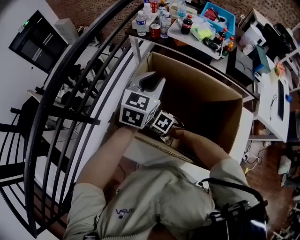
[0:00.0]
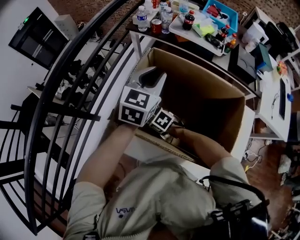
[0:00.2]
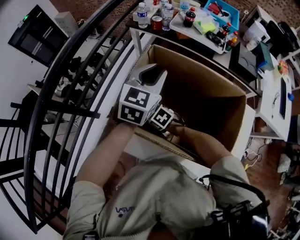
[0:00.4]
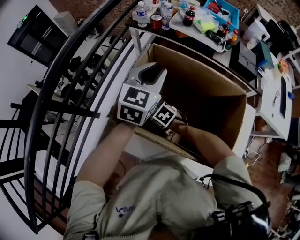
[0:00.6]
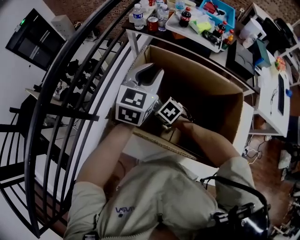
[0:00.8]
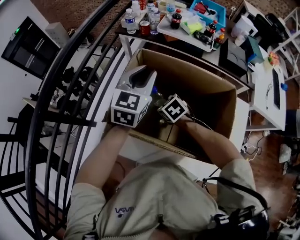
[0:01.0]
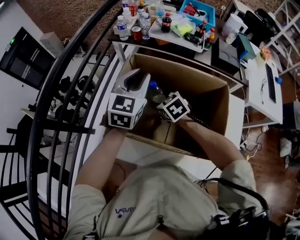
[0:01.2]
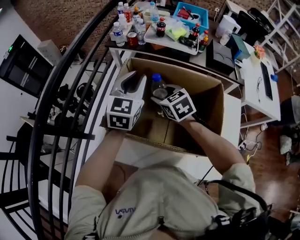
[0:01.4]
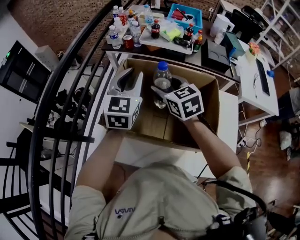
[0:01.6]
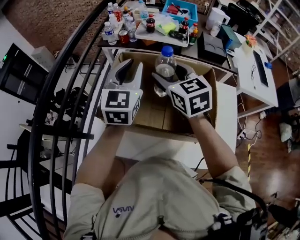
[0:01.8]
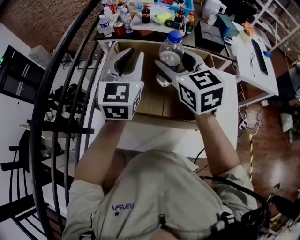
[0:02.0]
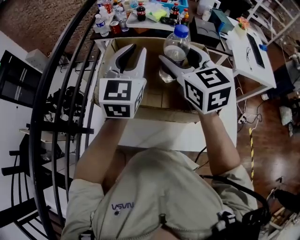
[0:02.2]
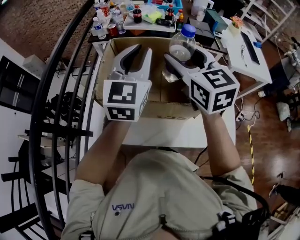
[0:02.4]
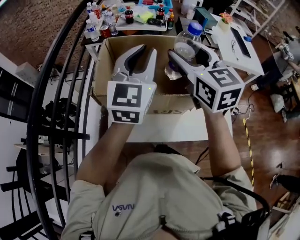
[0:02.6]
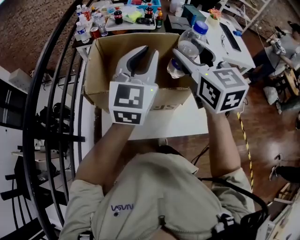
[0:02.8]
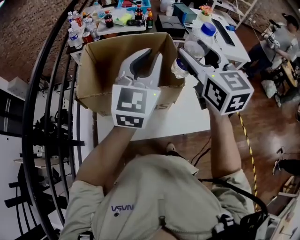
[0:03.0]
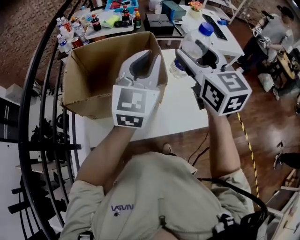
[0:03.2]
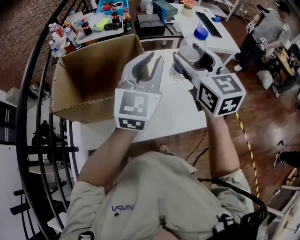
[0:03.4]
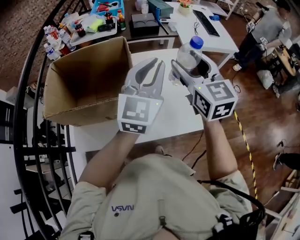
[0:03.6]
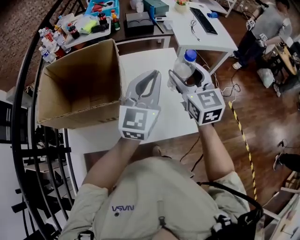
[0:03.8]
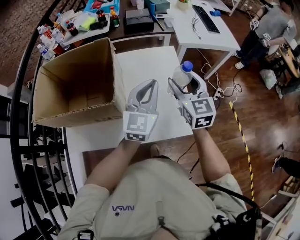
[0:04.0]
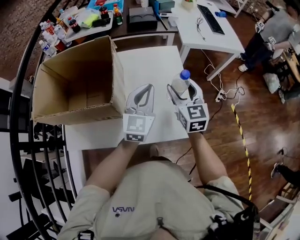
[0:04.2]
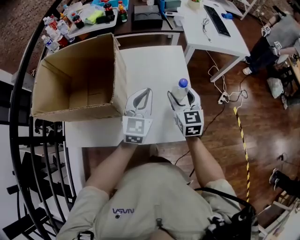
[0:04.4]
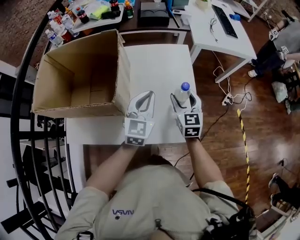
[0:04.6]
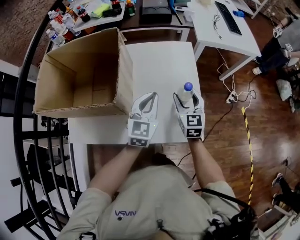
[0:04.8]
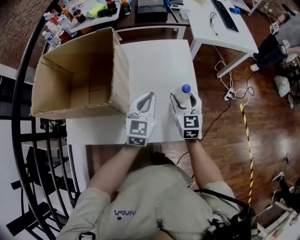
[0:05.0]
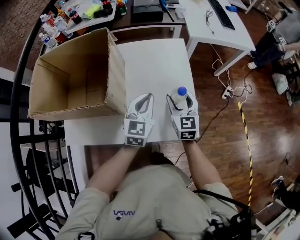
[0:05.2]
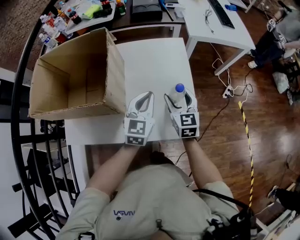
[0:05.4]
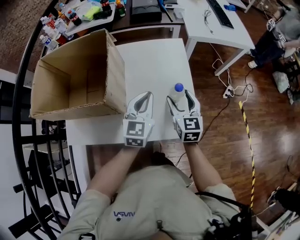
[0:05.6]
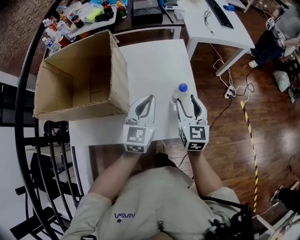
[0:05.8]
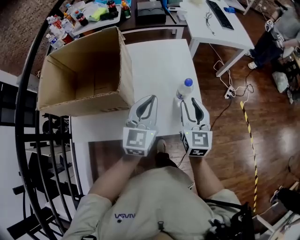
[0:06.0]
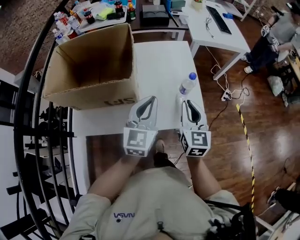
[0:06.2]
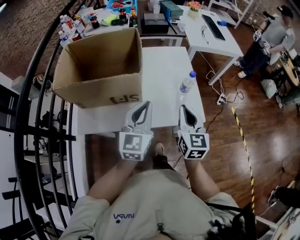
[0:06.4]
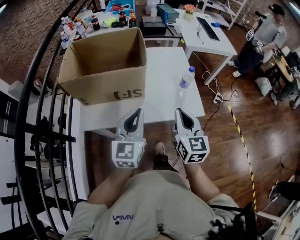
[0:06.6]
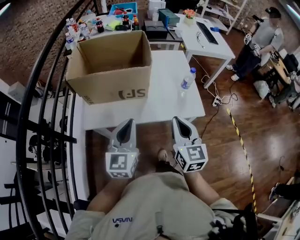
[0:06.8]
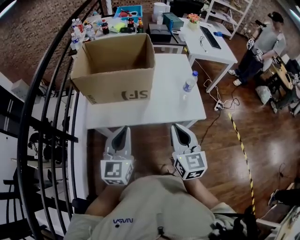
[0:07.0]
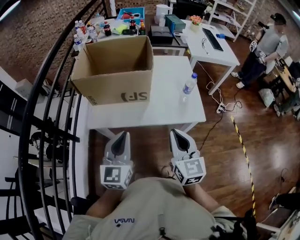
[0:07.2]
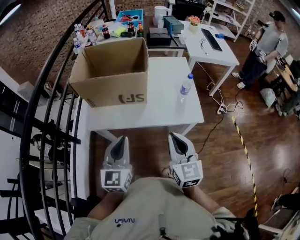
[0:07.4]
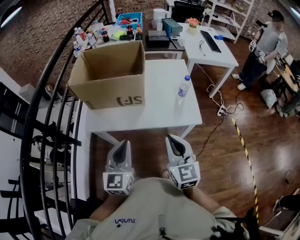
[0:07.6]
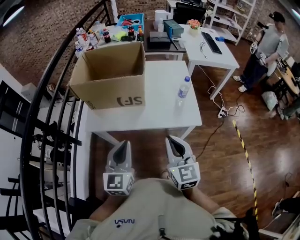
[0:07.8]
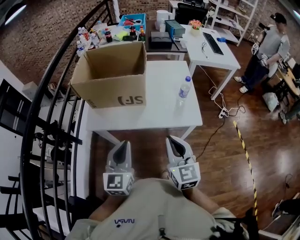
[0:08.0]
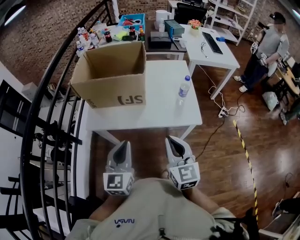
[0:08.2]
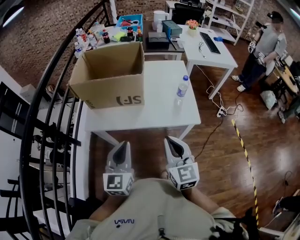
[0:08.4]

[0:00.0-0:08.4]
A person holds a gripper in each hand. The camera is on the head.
0:00.0 to 0:01.4: The right gripper moves upward, about 20 cm, and rotates roughly 40 degrees.
0:01.4 to 0:02.8: The right gripper heads upward, backward and to the right, covering about 35 cm, and angles its fingers upward, by about 30 degrees; the left gripper shifts roughly 25 cm backward, upward and to the right, and changes its angle by roughly 20 degrees.
0:02.8 to 0:04.2: Both grippers travel together to the right and downward, about 35 cm.
0:04.2 to 0:05.6: Both grippers travel together downward, approximately 10 cm.
0:05.6 to 0:07.0: The left gripper is displaced backward and to the left by approximately 40 cm. Meanwhile the right gripper is displaced backward, to the left and upward by some 40 cm, and closes up.
0:07.0 to 0:08.4: Both grippers move backward, some 5 cm.

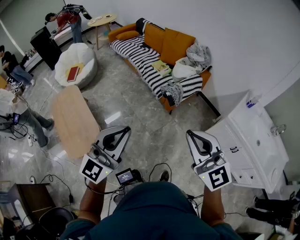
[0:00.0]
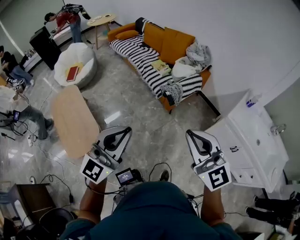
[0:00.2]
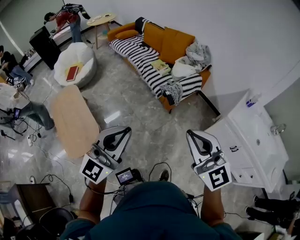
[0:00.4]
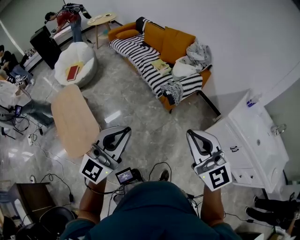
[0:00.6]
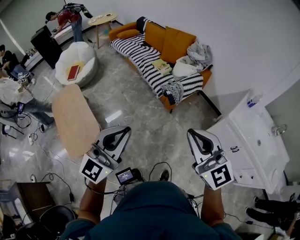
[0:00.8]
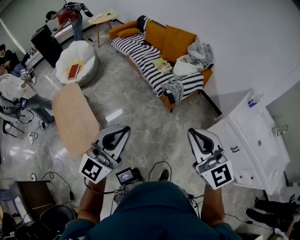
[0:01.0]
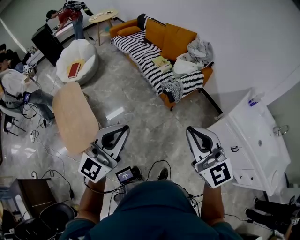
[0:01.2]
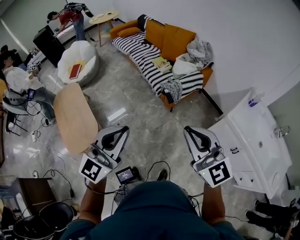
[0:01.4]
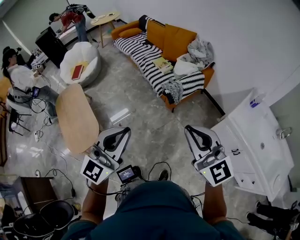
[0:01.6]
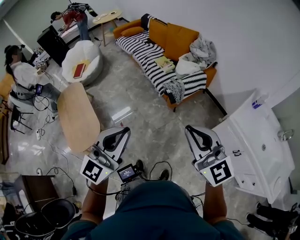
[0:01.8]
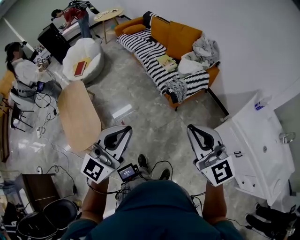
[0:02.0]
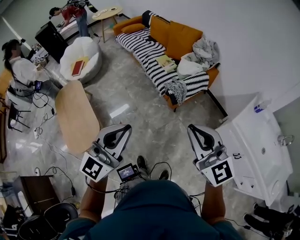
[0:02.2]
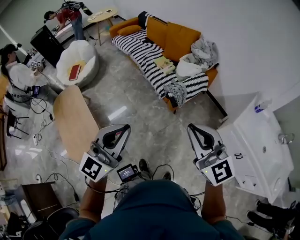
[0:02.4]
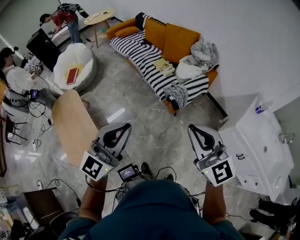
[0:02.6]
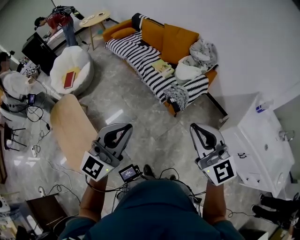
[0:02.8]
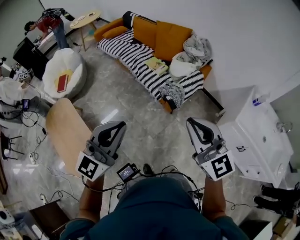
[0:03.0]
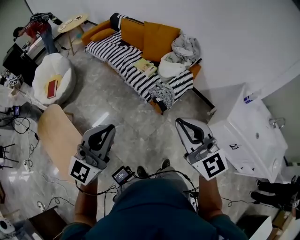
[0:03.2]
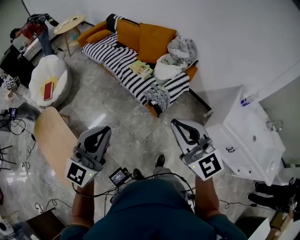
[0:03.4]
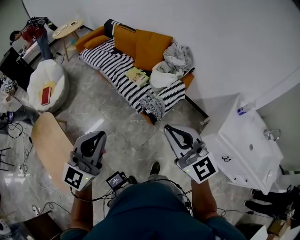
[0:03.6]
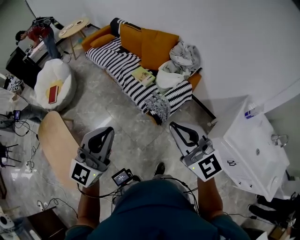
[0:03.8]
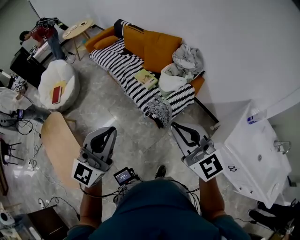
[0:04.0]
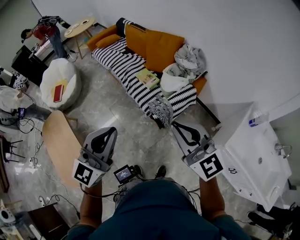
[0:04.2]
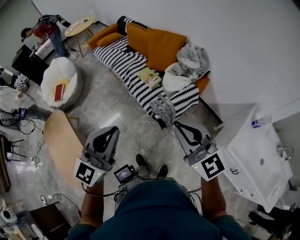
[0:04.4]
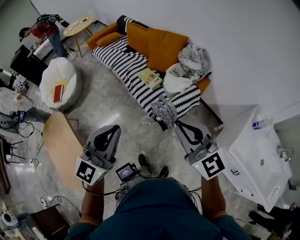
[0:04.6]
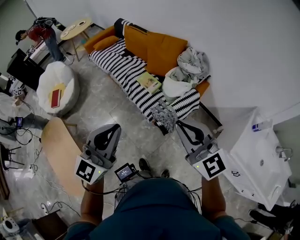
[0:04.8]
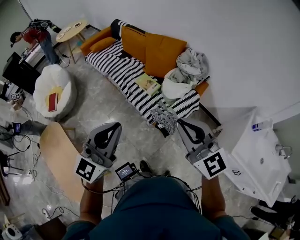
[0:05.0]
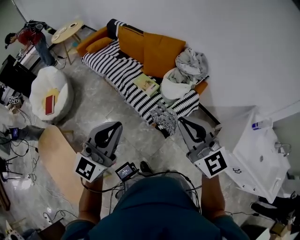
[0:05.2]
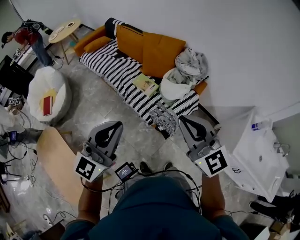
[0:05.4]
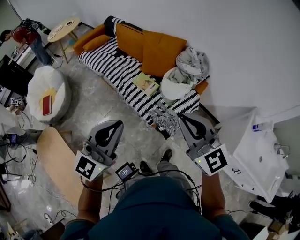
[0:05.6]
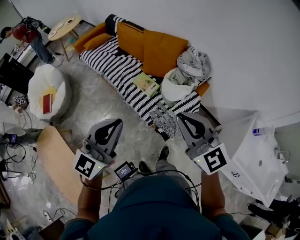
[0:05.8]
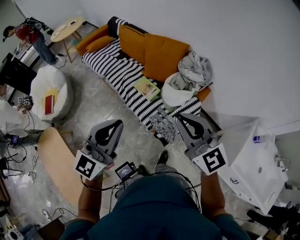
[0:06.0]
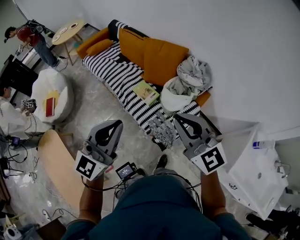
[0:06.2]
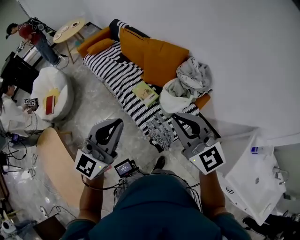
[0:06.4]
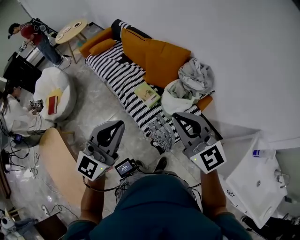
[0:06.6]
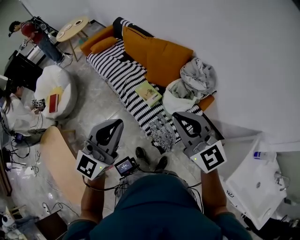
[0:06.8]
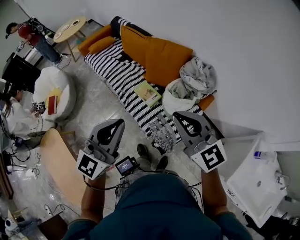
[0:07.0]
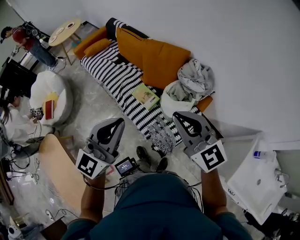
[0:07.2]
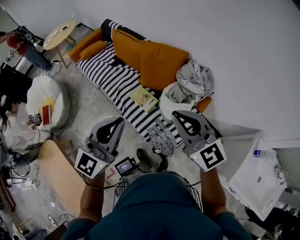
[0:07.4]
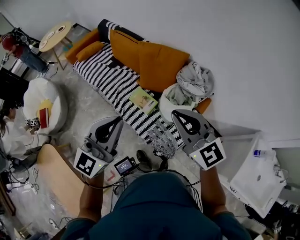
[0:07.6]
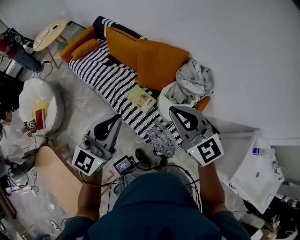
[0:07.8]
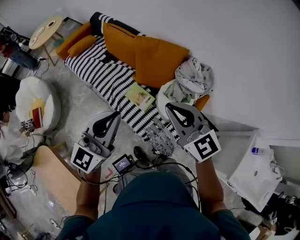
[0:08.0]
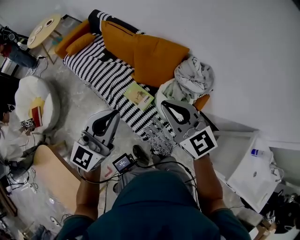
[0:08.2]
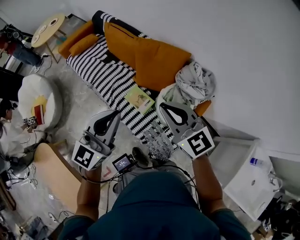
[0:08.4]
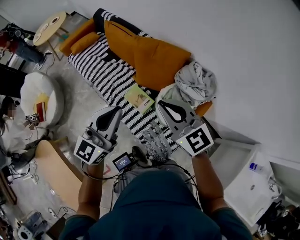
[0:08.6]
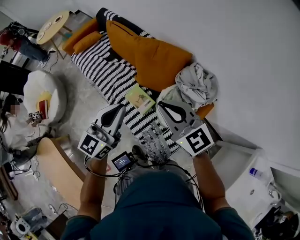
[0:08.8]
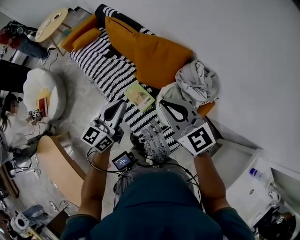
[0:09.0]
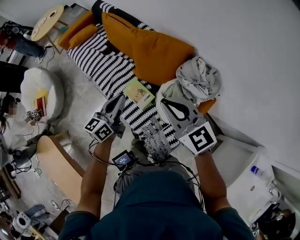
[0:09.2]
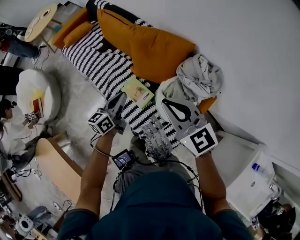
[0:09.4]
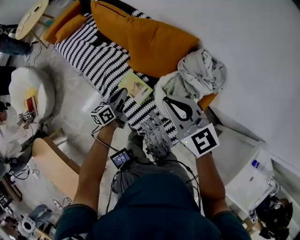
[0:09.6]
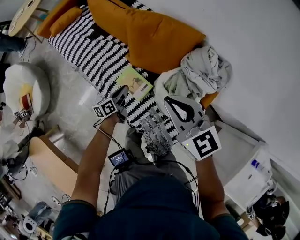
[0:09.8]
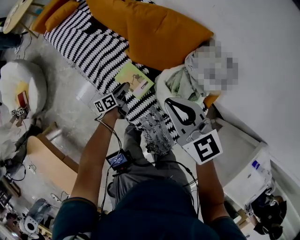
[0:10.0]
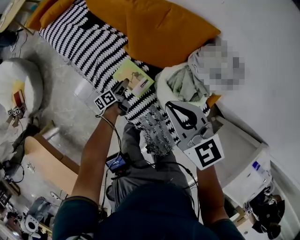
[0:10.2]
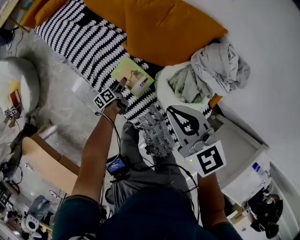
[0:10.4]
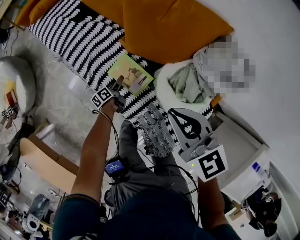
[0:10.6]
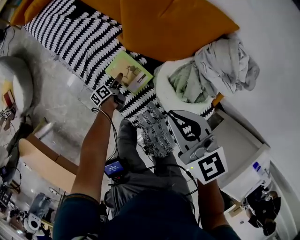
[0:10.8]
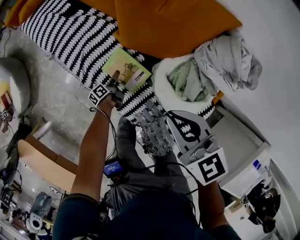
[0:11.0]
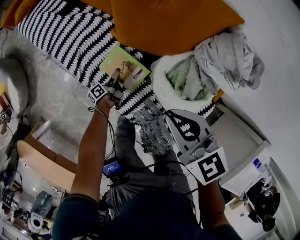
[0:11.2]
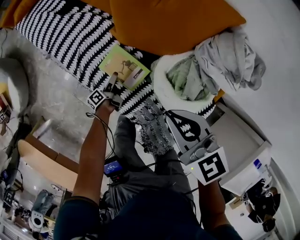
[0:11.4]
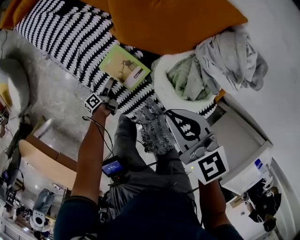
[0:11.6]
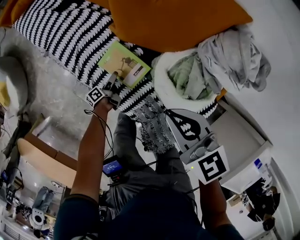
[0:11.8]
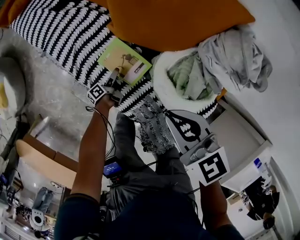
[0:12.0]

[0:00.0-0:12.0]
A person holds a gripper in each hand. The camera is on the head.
0:00.0 to 0:01.6: Both grippers travel together to the right, about 10 cm.
0:01.6 to 0:03.0: The two grippers go some 20 cm forward and to the left.
0:03.0 to 0:04.4: Both grippers travel together forward and to the right, roughly 20 cm.
0:04.4 to 0:06.0: The grippers both shift forward by roughly 20 cm.
0:06.0 to 0:07.6: Both grippers travel together forward, roughly 20 cm.
0:07.6 to 0:09.0: Both grippers move forward and downward, approximately 20 cm. The left gripper changes its angle by about 30 degrees.
0:09.0 to 0:10.4: The right gripper goes some 20 cm downward and forward, and swivels some 20 degrees. The left gripper moves downward, about 60 cm, twists roughly 60 degrees counterclockwise, seen from behind, and opens.
0:10.4 to 0:12.0: The two grippers go approximately 10 cm downward.

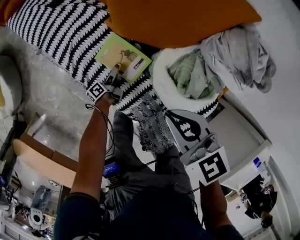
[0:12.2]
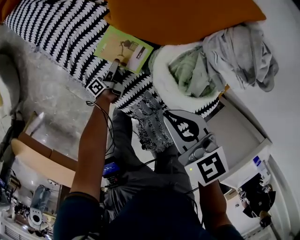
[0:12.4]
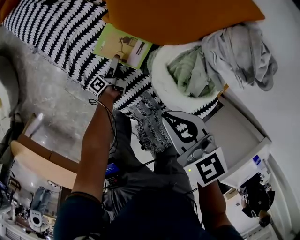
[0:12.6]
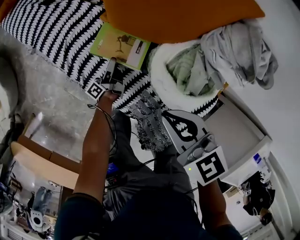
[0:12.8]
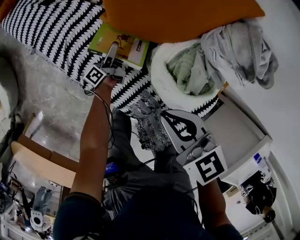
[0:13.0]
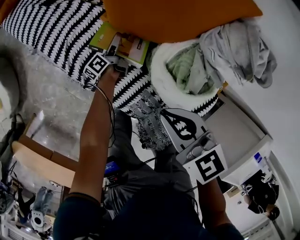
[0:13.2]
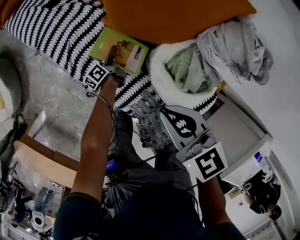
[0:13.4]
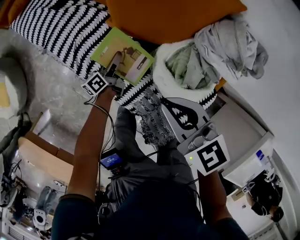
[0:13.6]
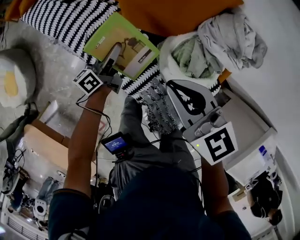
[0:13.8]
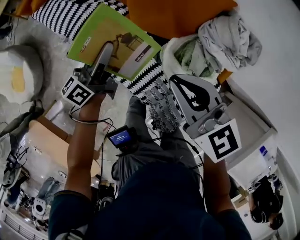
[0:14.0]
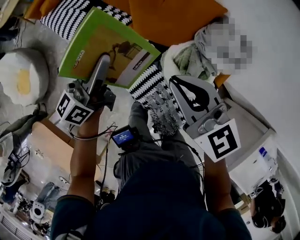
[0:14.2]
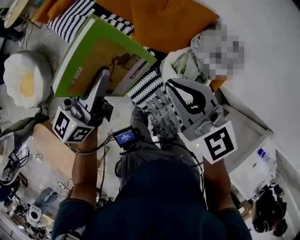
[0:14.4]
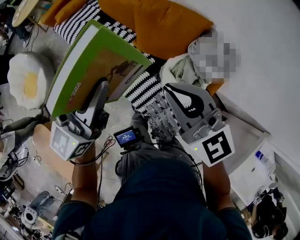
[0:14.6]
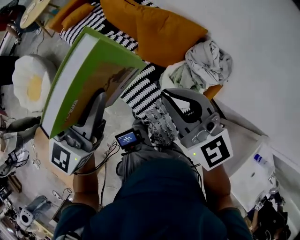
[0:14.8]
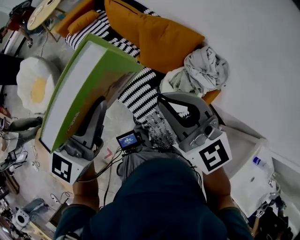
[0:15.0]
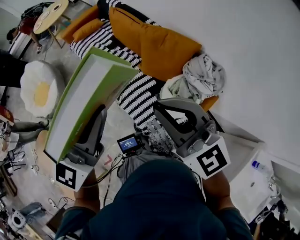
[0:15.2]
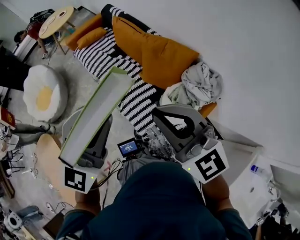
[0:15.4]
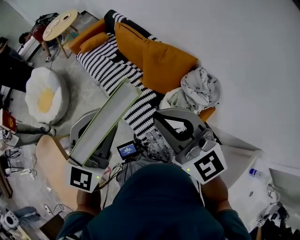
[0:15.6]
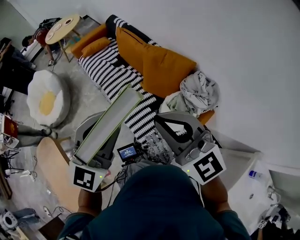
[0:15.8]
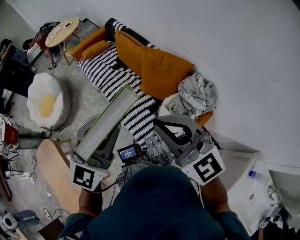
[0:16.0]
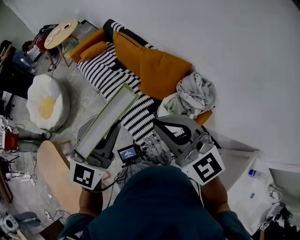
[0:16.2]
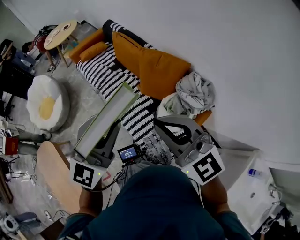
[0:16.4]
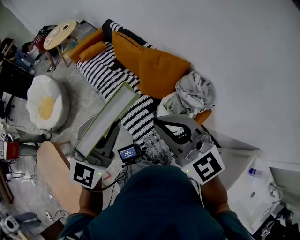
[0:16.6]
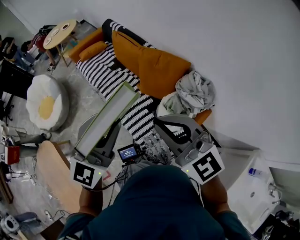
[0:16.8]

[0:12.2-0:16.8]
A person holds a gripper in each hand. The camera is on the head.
0:12.2 to 0:13.8: The left gripper is displaced upward by roughly 30 cm, swivels roughly 30 degrees, and closes up, while the right gripper travels upward by about 10 cm.
0:13.8 to 0:15.2: The right gripper heads upward and backward, covering about 40 cm, and rotates about 40 degrees. The left gripper is displaced upward and backward by some 60 cm, and rolls clockwise, seen from behind, by some 70 degrees.
0:15.2 to 0:16.8: The right gripper is displaced backward by approximately 5 cm; the left gripper heads to the right, covering approximately 5 cm.
